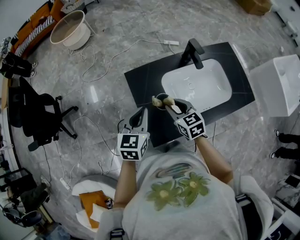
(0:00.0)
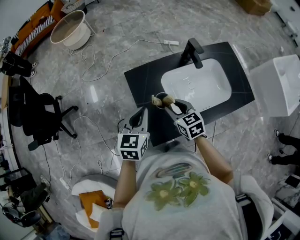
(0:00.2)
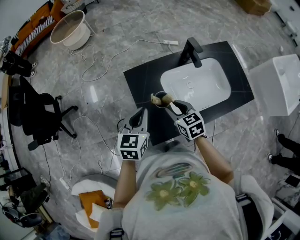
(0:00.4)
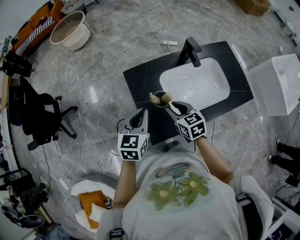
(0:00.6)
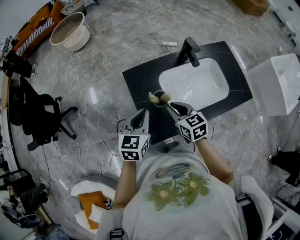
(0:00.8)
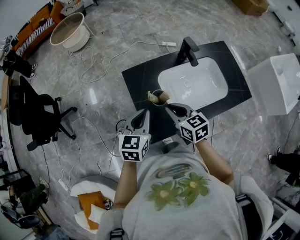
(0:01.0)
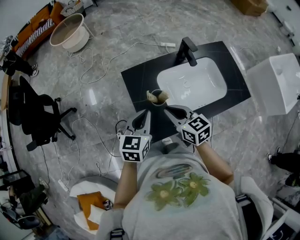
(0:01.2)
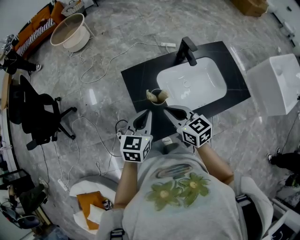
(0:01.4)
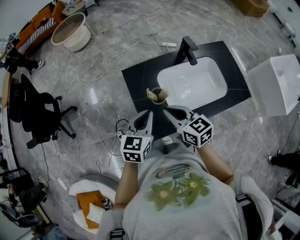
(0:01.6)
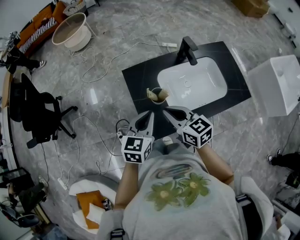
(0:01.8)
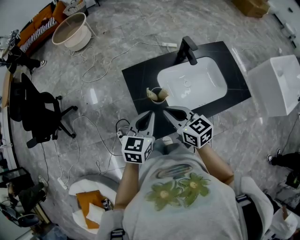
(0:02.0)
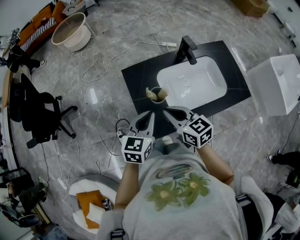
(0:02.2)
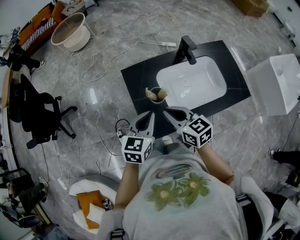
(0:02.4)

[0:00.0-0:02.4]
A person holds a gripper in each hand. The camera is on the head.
0:00.0 to 0:01.2: The left gripper ends up approximately 5 cm from where it was, while the right gripper moves backward and upward, about 10 cm.
0:01.2 to 0:02.4: The grippers make only small movements.

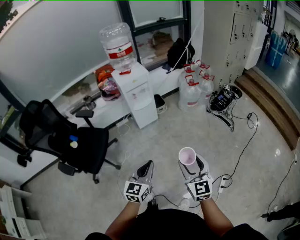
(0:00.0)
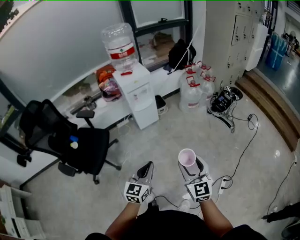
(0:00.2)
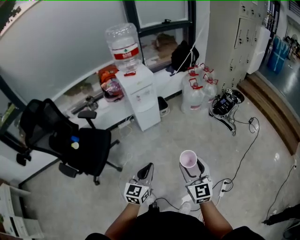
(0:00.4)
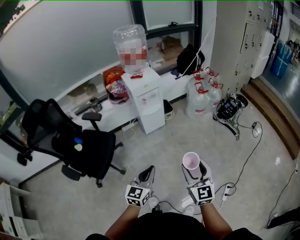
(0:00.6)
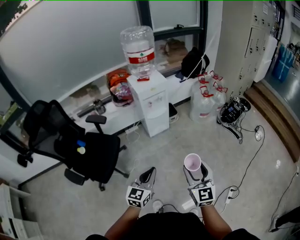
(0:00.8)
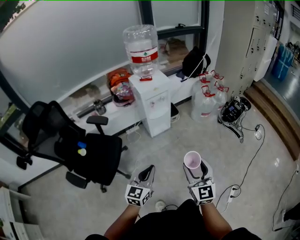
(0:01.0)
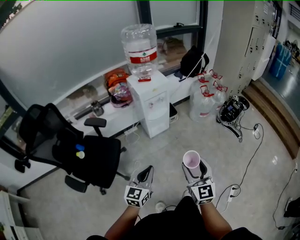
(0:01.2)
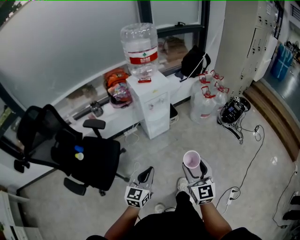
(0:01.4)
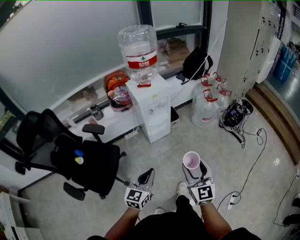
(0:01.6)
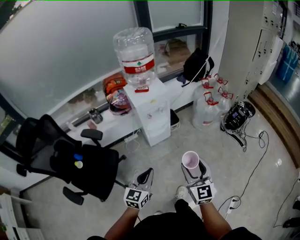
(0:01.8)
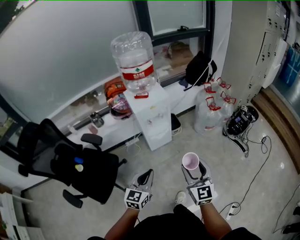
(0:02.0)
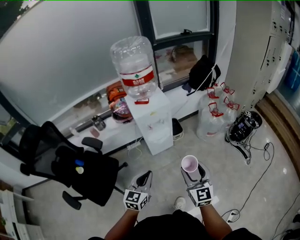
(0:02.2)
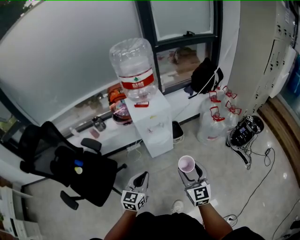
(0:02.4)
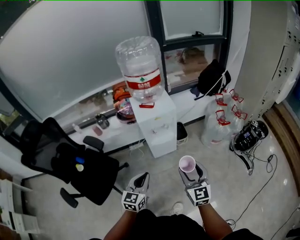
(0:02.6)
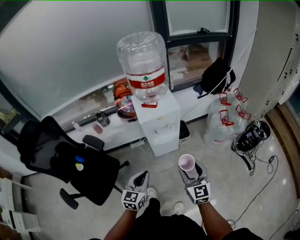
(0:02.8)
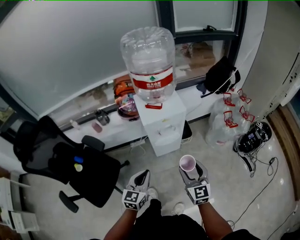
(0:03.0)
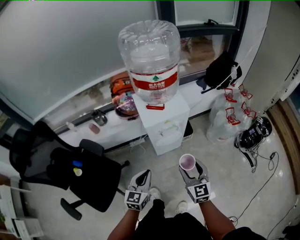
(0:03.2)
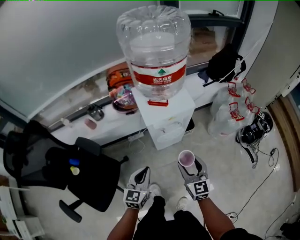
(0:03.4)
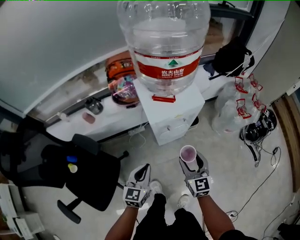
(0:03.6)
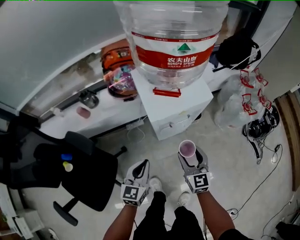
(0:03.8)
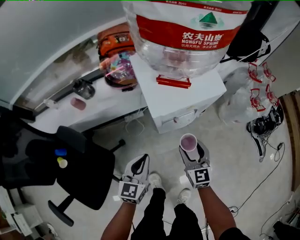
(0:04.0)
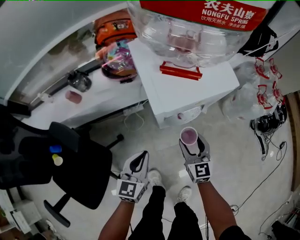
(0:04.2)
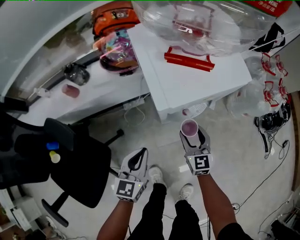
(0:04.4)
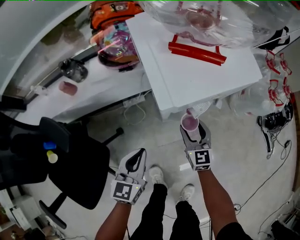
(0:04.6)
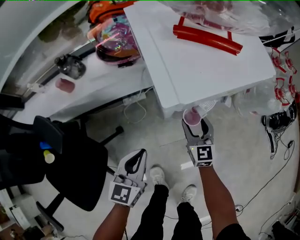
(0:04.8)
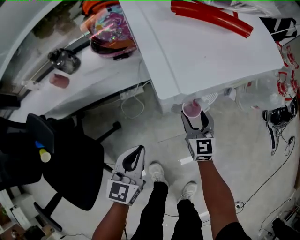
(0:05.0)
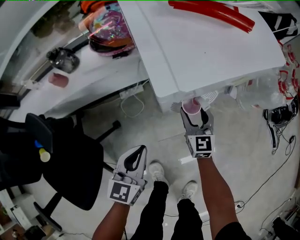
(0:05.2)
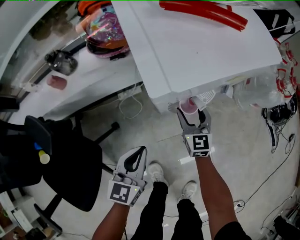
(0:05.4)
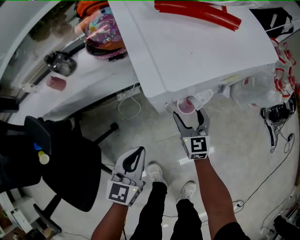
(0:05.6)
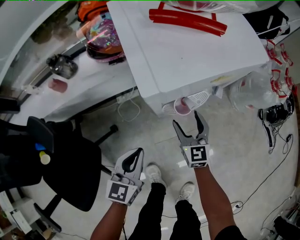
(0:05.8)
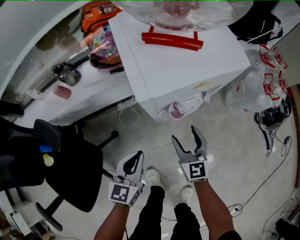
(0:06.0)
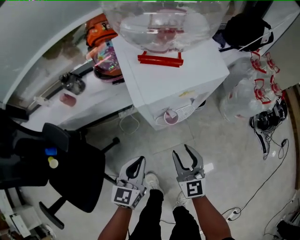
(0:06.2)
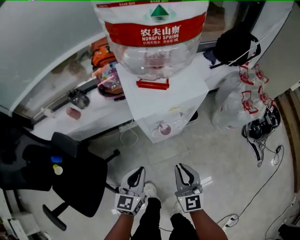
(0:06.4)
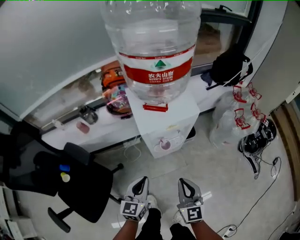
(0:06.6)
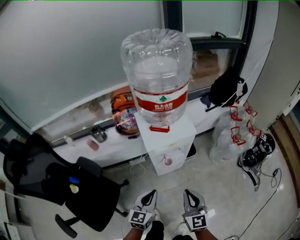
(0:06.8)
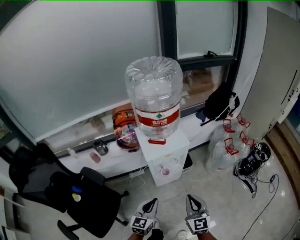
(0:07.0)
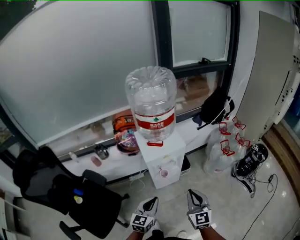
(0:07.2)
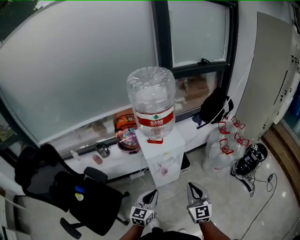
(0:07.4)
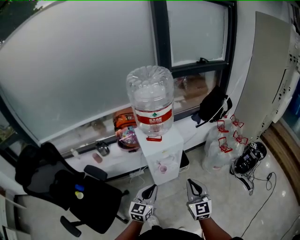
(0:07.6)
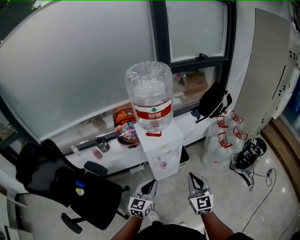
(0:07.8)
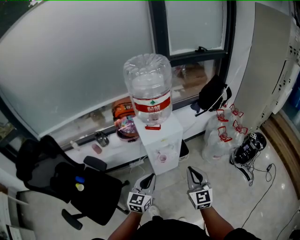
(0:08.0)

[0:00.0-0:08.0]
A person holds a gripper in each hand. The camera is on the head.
0:00.0 to 0:01.6: The right gripper goes some 20 cm forward and to the left. The left gripper shifts some 20 cm to the left and forward.
0:01.6 to 0:03.2: Both grippers move forward, approximately 30 cm.
0:03.2 to 0:04.8: The left gripper heads downward and forward, covering roughly 25 cm, while the right gripper moves downward and forward, about 40 cm.
0:04.8 to 0:06.4: The left gripper heads upward, to the right and backward, covering about 10 cm, while the right gripper moves upward and backward, about 25 cm, and closes.
0:06.4 to 0:08.0: Both grippers travel together upward, about 25 cm.

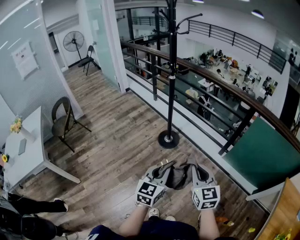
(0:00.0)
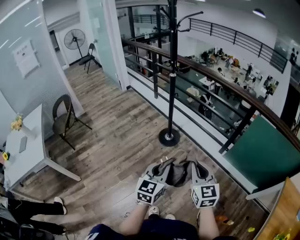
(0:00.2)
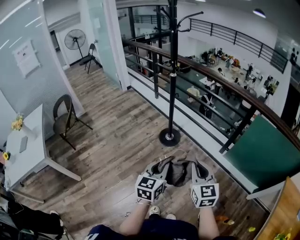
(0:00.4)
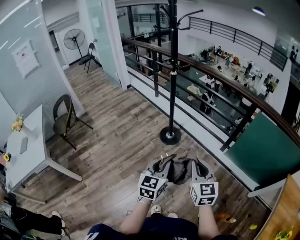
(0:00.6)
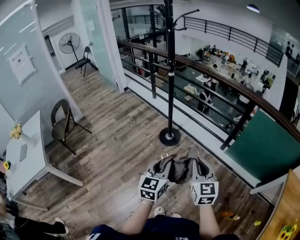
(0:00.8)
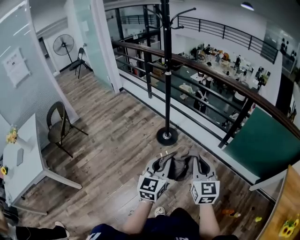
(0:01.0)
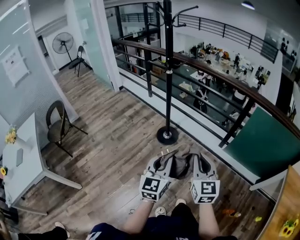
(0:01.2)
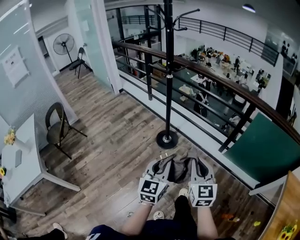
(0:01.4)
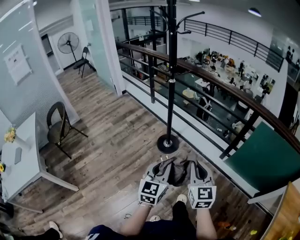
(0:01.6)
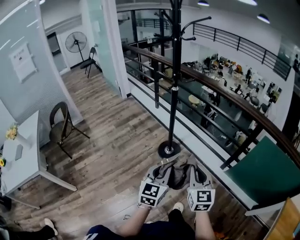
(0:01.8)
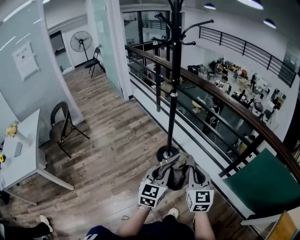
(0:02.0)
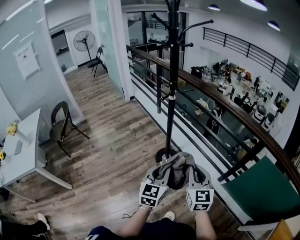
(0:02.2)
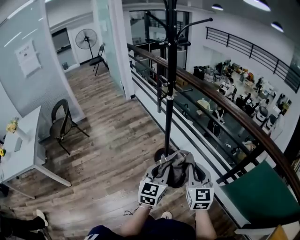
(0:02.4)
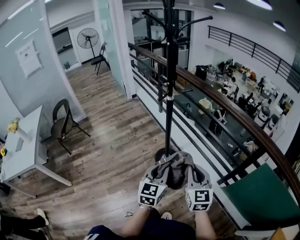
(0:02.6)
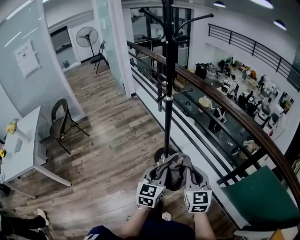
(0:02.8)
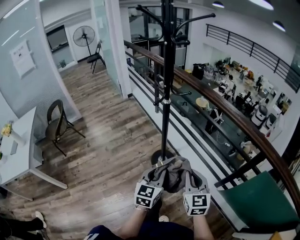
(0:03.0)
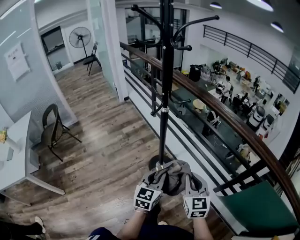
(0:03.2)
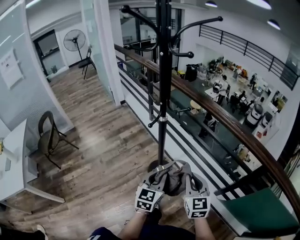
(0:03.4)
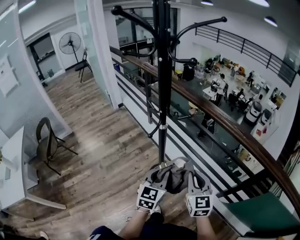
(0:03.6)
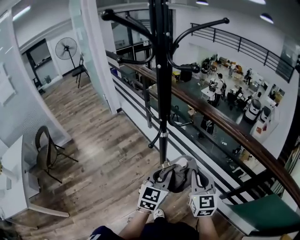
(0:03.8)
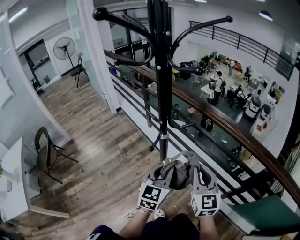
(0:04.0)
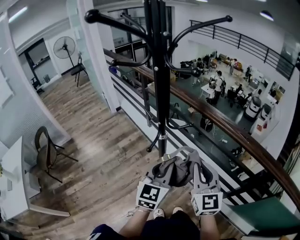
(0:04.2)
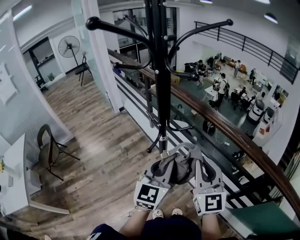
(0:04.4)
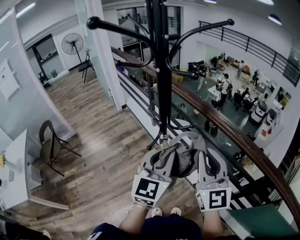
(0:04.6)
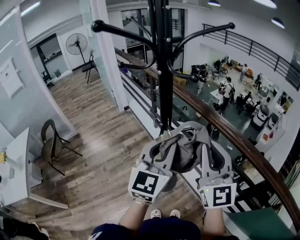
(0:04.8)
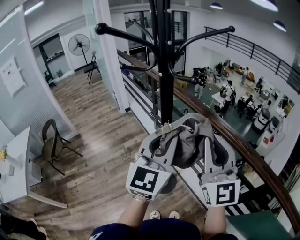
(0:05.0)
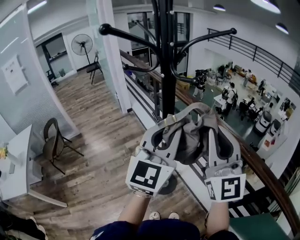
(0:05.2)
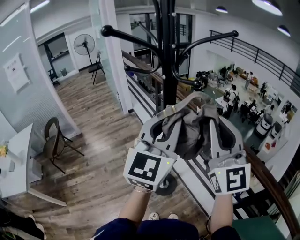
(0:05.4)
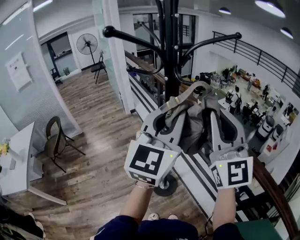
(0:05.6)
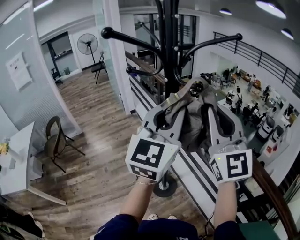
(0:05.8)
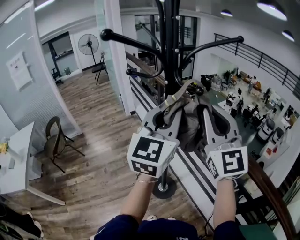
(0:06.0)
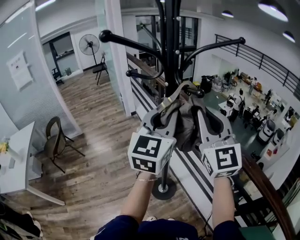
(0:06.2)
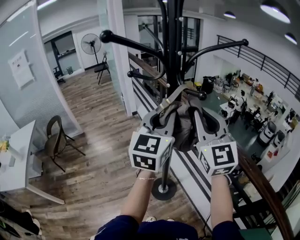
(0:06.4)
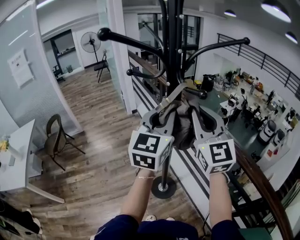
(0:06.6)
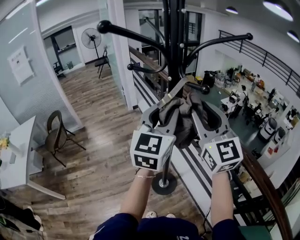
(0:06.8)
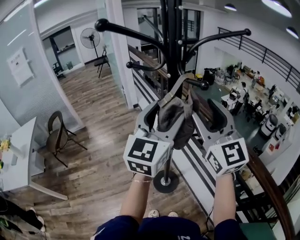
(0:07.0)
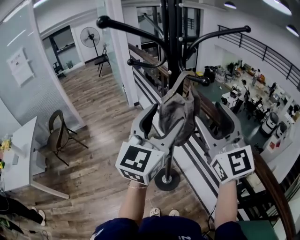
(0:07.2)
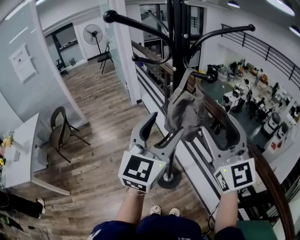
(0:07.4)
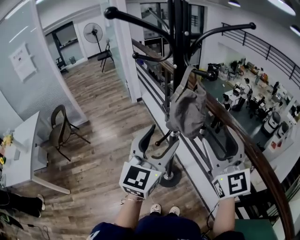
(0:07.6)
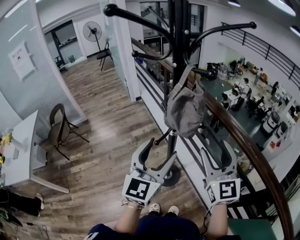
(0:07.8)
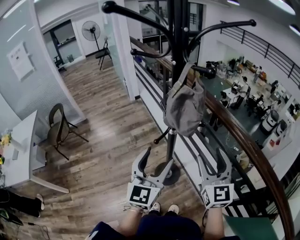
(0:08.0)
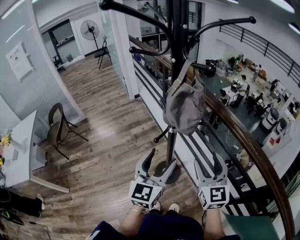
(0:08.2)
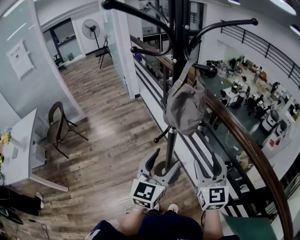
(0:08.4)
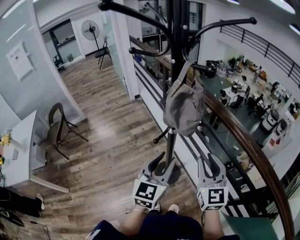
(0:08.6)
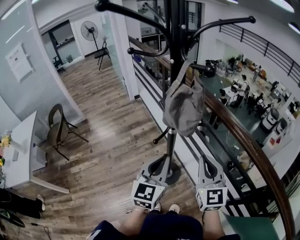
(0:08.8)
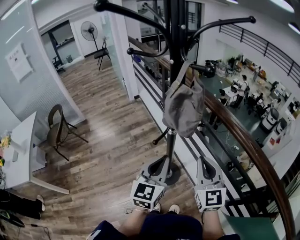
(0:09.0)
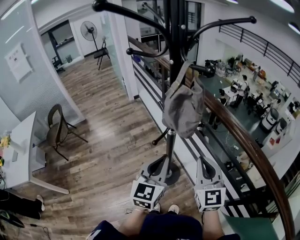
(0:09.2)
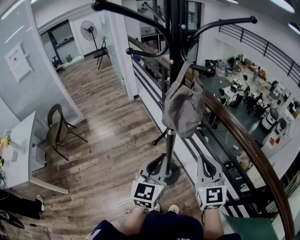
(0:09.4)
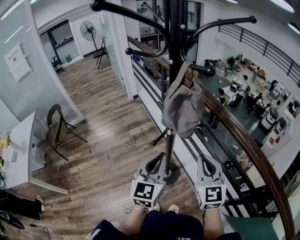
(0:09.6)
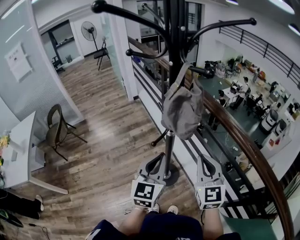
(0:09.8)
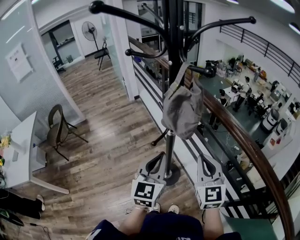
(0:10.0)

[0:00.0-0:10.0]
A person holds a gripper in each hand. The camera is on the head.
0:00.0 to 0:01.4: The right gripper changes place by roughly 5 cm. The left gripper is displaced forward by approximately 5 cm.
0:01.4 to 0:02.8: The right gripper shifts about 25 cm forward. Meanwhile the left gripper heads forward and to the right, covering about 25 cm.
0:02.8 to 0:04.2: The left gripper travels forward by approximately 25 cm, while the right gripper is displaced forward and upward by approximately 25 cm.
0:04.2 to 0:05.8: The grippers both shift upward by about 25 cm. The left gripper swivels roughly 20 degrees. Meanwhile the right gripper turns by about 30 degrees.
0:05.8 to 0:07.2: The left gripper heads downward, covering about 5 cm, and opens its fingers. Meanwhile the right gripper opens its fingers.
0:07.2 to 0:08.6: Both grippers move downward, about 20 cm. The left gripper closes. Meanwhile the right gripper rotates about 20 degrees, and closes up.
0:08.6 to 0:10.0: The right gripper closes, while the left gripper closes.

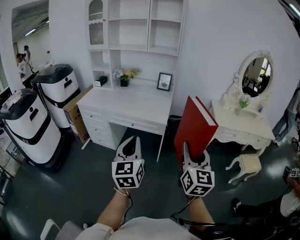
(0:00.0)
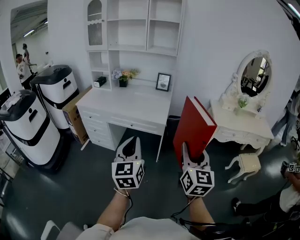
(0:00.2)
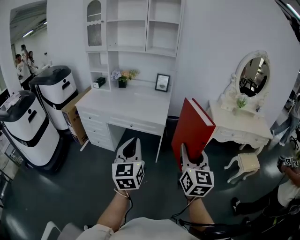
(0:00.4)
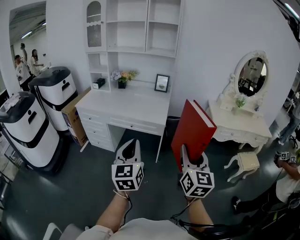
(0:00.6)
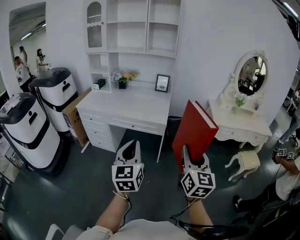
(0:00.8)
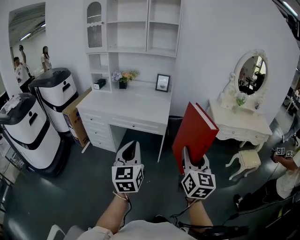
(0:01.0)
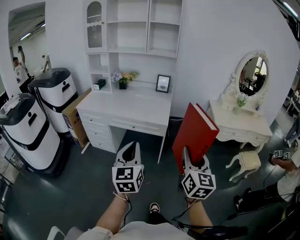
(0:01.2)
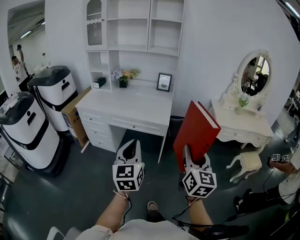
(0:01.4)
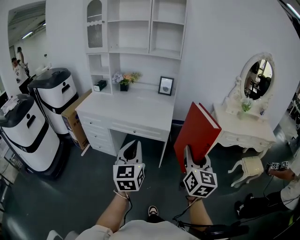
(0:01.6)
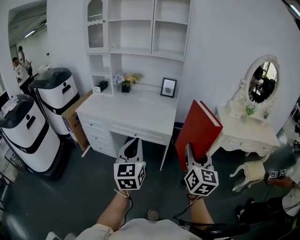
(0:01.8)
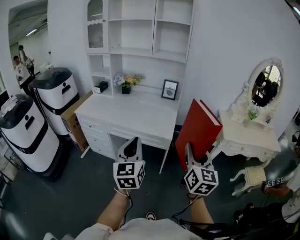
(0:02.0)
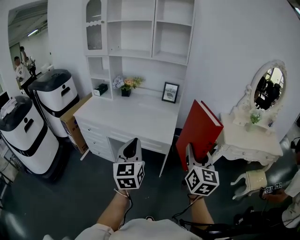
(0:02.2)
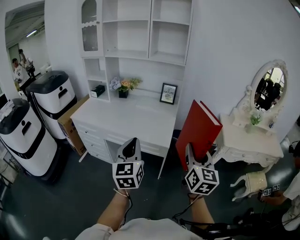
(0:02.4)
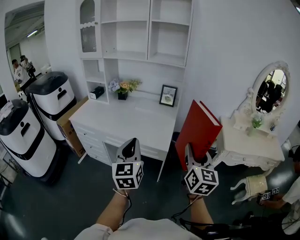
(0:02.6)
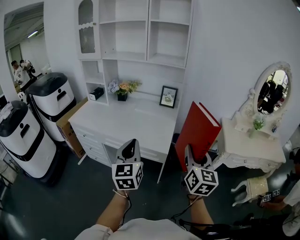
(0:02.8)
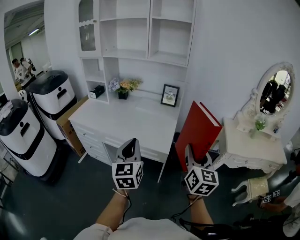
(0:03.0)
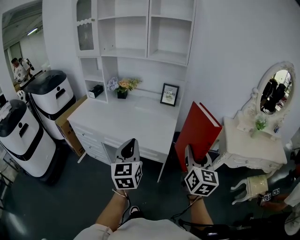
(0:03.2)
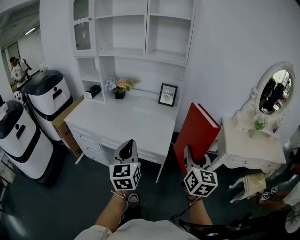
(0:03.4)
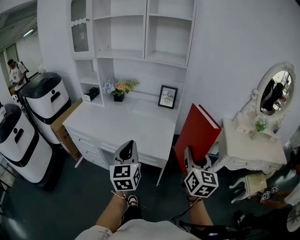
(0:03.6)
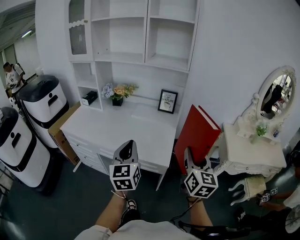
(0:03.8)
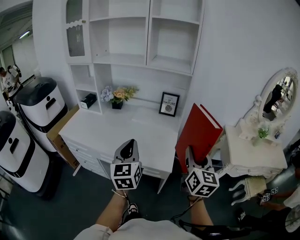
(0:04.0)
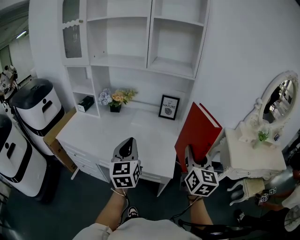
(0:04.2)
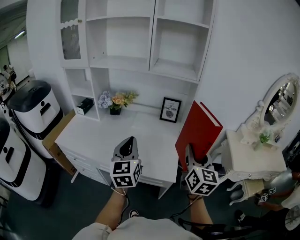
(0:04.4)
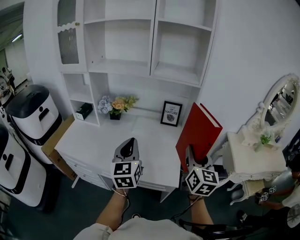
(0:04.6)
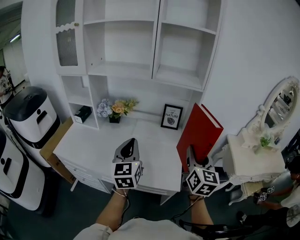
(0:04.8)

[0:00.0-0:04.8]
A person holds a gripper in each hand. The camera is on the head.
0:00.0 to 0:01.6: The two grippers go about 5 cm forward.
0:01.6 to 0:03.2: The two grippers go roughly 25 cm forward.
0:03.2 to 0:04.8: Both grippers move forward, roughly 25 cm.
